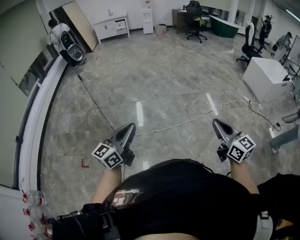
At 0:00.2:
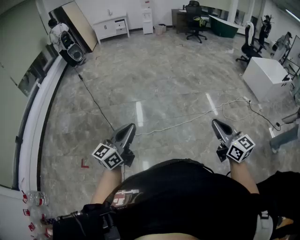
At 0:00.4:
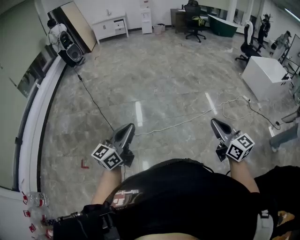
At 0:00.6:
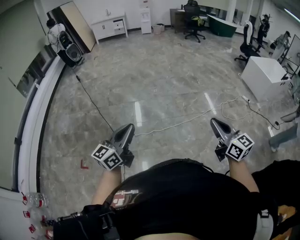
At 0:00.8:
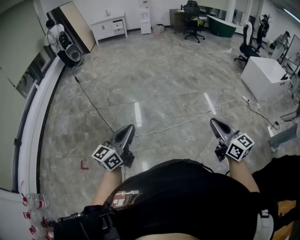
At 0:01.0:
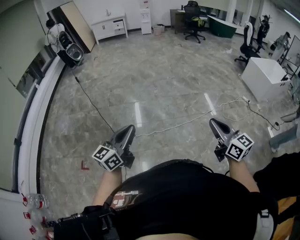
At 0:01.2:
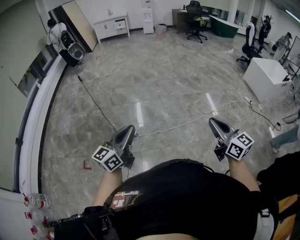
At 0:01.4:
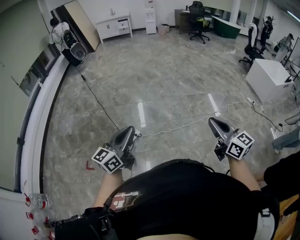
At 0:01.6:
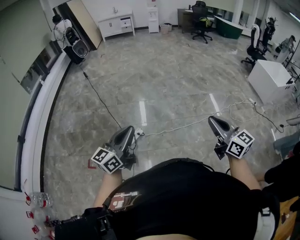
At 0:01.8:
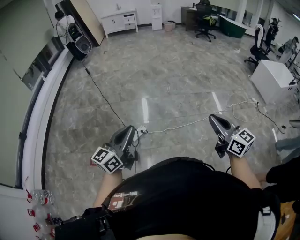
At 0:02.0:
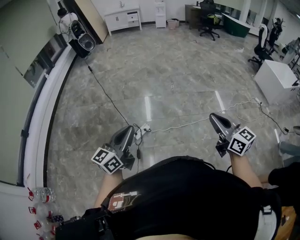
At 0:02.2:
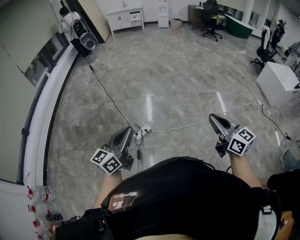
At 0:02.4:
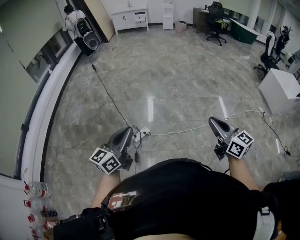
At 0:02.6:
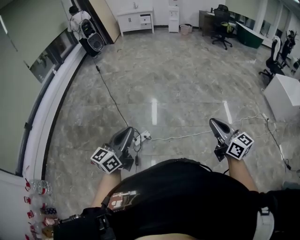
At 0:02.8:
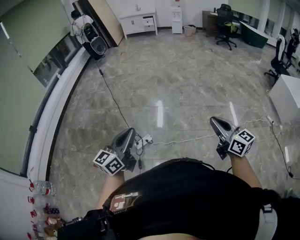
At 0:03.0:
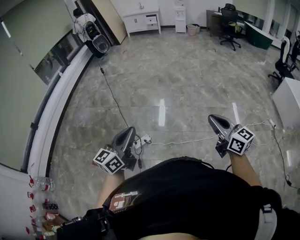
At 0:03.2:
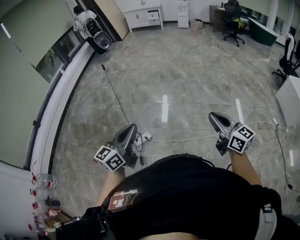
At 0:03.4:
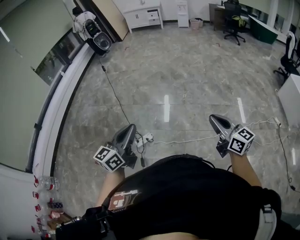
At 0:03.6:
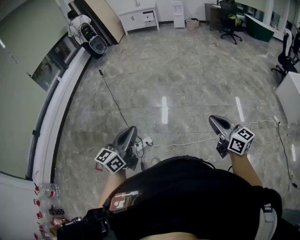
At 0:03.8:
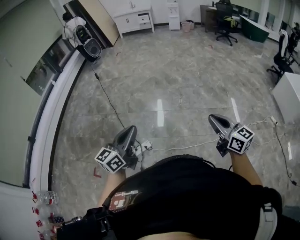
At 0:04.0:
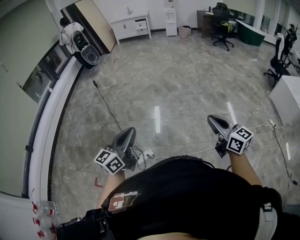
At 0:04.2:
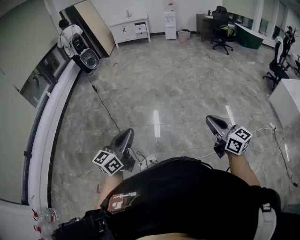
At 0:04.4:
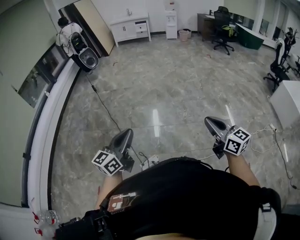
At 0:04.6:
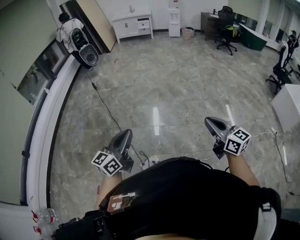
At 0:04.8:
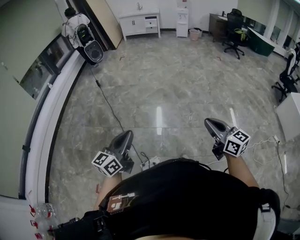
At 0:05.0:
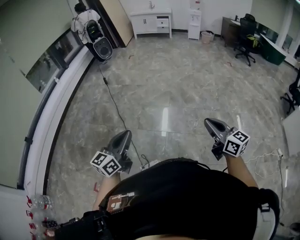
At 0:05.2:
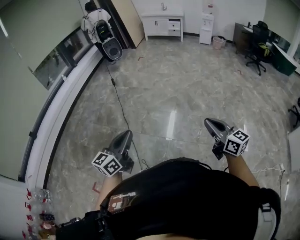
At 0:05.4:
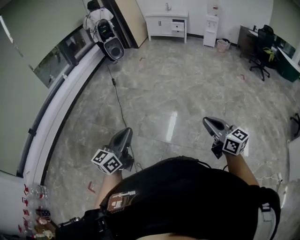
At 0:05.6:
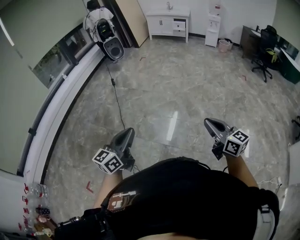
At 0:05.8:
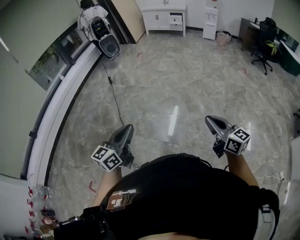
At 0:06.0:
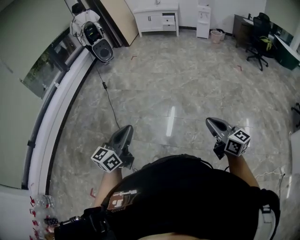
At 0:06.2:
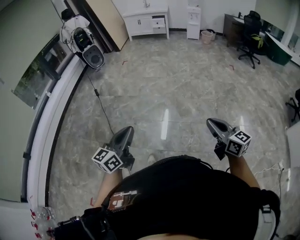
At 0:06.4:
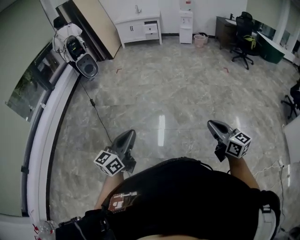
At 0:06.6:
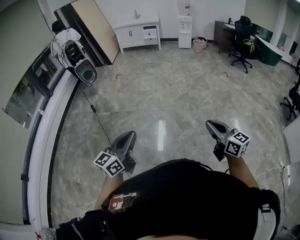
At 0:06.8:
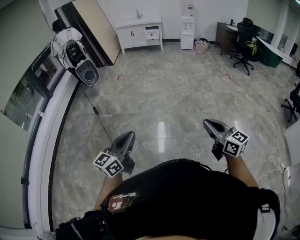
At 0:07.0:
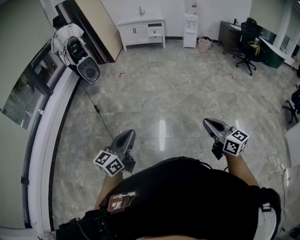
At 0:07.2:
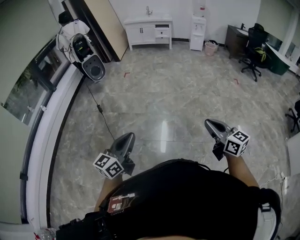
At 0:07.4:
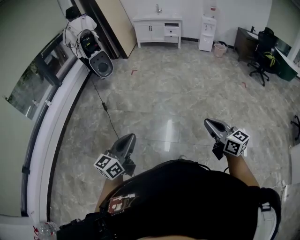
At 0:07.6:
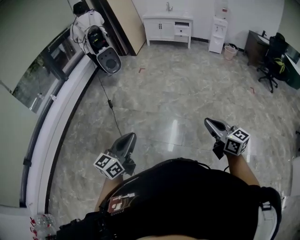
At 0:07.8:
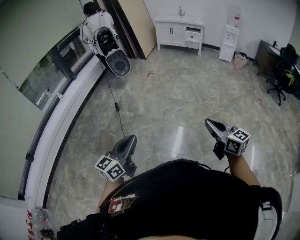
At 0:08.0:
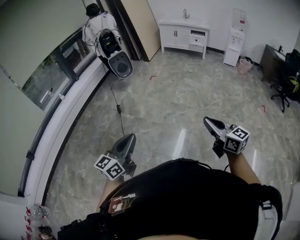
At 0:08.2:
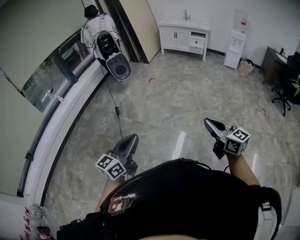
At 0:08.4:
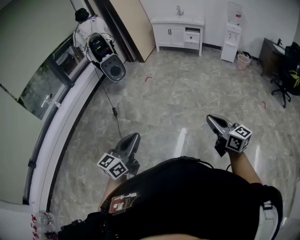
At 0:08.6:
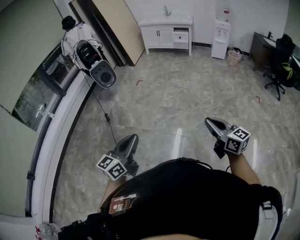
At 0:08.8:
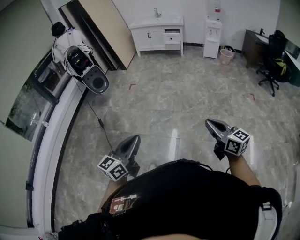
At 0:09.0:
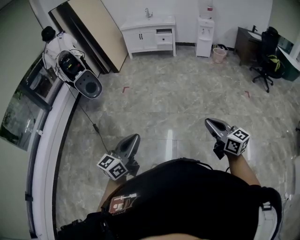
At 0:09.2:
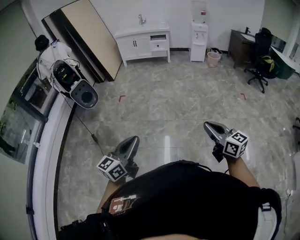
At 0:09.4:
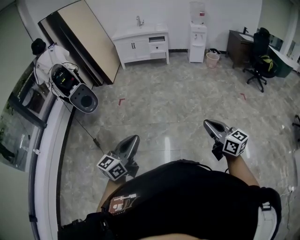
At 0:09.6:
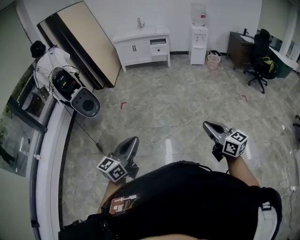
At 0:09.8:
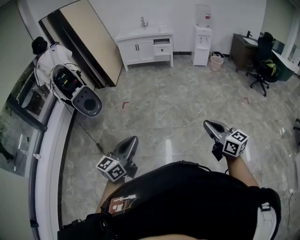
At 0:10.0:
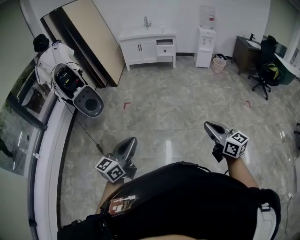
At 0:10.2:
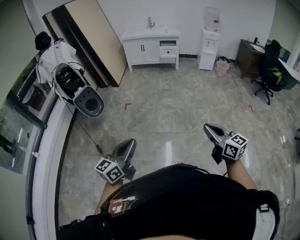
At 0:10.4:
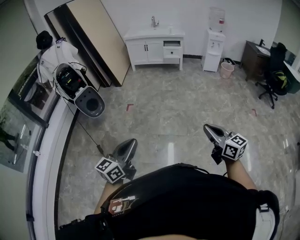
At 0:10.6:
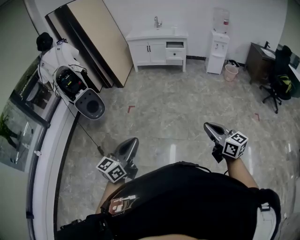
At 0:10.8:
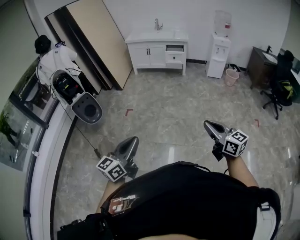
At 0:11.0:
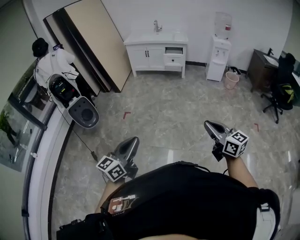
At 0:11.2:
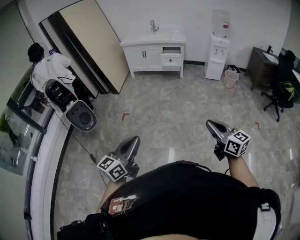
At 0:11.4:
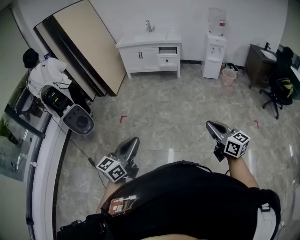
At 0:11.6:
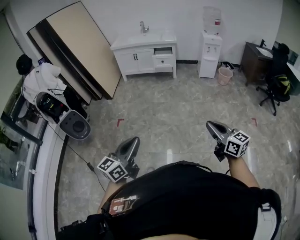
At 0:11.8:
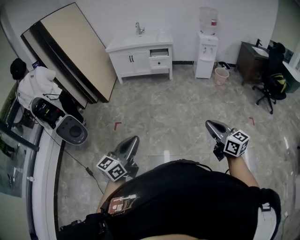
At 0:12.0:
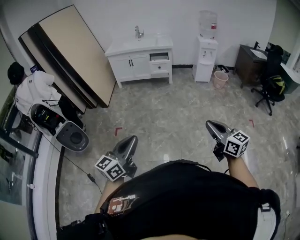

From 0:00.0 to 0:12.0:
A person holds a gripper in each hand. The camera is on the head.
From 0:00.0 to 0:01.6: The two grippers go approximately 15 cm to the left.
From 0:01.6 to 0:03.0: Both grippers travel together forward and to the right, about 20 cm.
From 0:03.0 to 0:04.4: The grippers both shift forward and to the left by approximately 35 cm.
From 0:04.4 to 0:06.0: The two grippers travel together, forward and to the right, approximately 40 cm.
From 0:06.0 to 0:07.6: The pair of grippers is taken forward and to the left, some 40 cm.
From 0:07.6 to 0:09.0: The two grippers go approximately 35 cm forward and to the right.
From 0:09.0 to 0:10.4: Both grippers move forward and to the left, approximately 30 cm.
From 0:10.4 to 0:12.0: The left gripper travels forward by some 35 cm, while the right gripper is displaced forward and to the right by roughly 35 cm.

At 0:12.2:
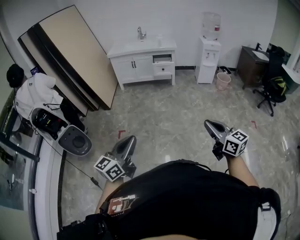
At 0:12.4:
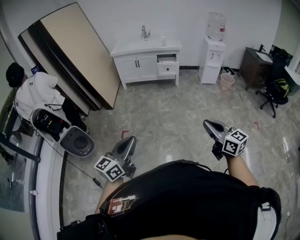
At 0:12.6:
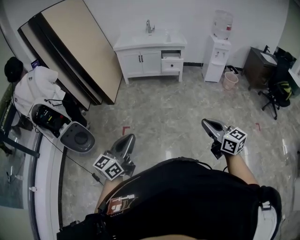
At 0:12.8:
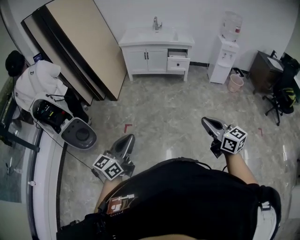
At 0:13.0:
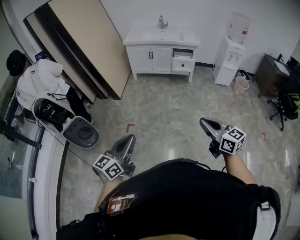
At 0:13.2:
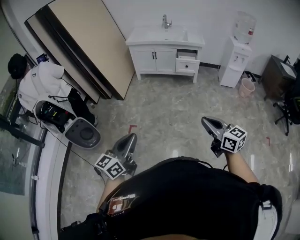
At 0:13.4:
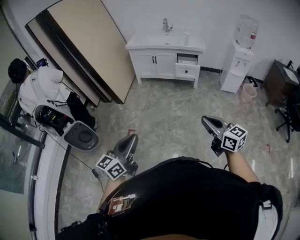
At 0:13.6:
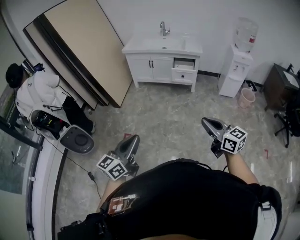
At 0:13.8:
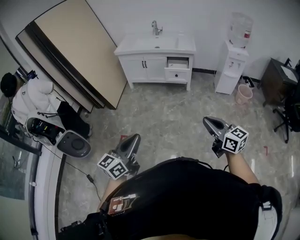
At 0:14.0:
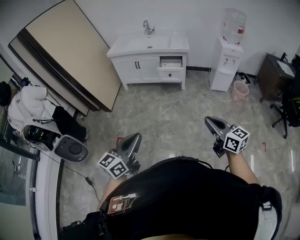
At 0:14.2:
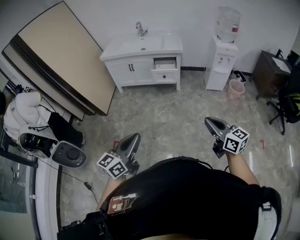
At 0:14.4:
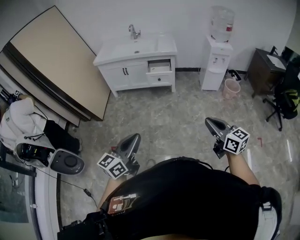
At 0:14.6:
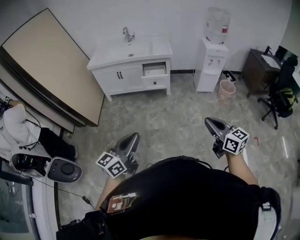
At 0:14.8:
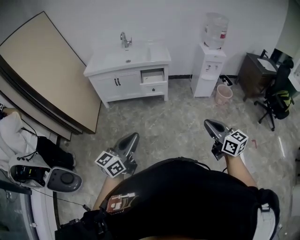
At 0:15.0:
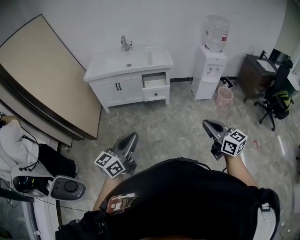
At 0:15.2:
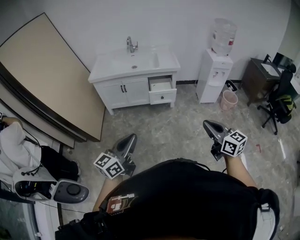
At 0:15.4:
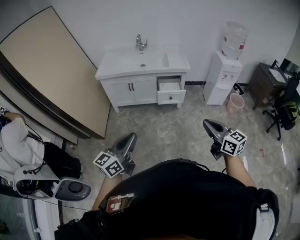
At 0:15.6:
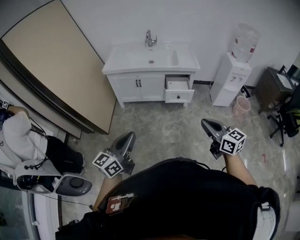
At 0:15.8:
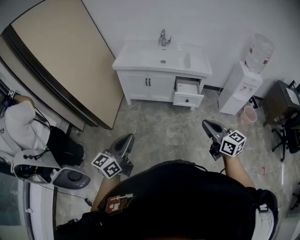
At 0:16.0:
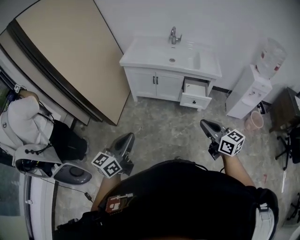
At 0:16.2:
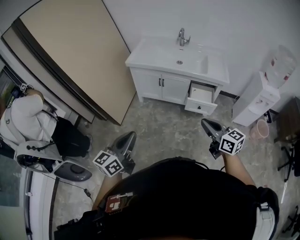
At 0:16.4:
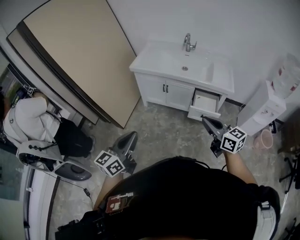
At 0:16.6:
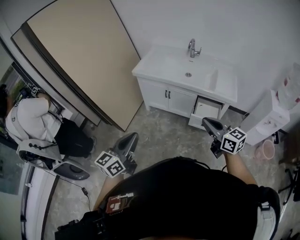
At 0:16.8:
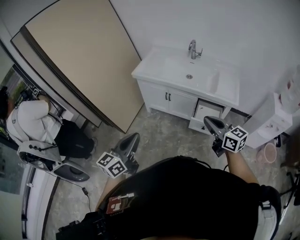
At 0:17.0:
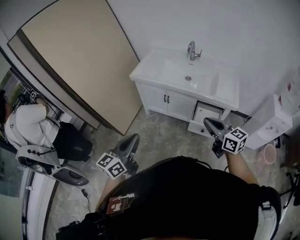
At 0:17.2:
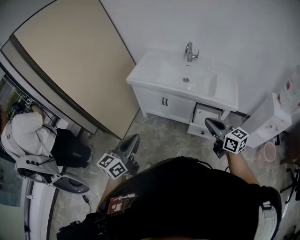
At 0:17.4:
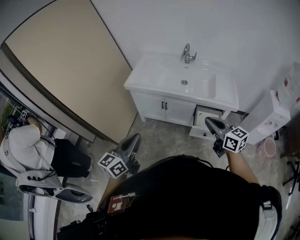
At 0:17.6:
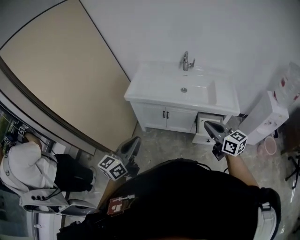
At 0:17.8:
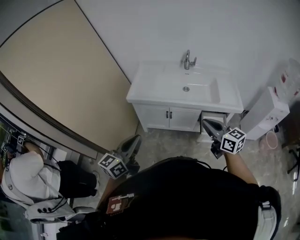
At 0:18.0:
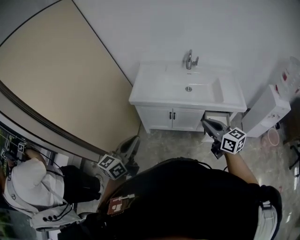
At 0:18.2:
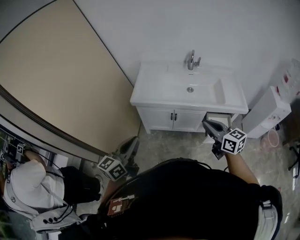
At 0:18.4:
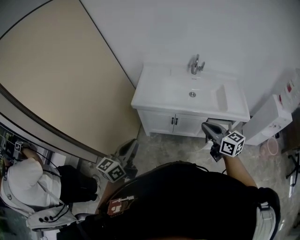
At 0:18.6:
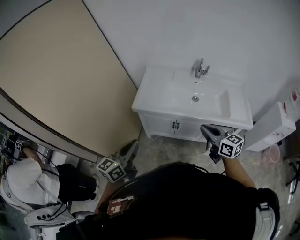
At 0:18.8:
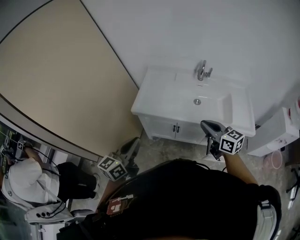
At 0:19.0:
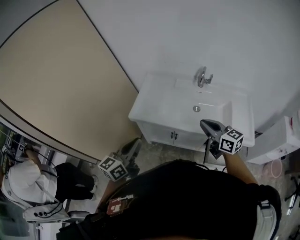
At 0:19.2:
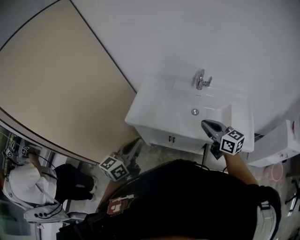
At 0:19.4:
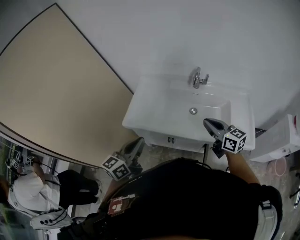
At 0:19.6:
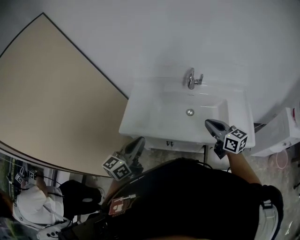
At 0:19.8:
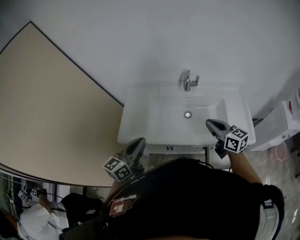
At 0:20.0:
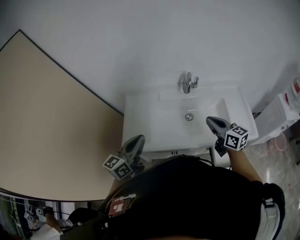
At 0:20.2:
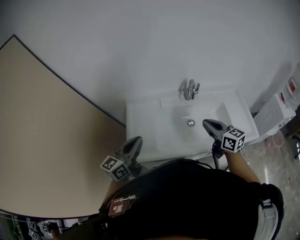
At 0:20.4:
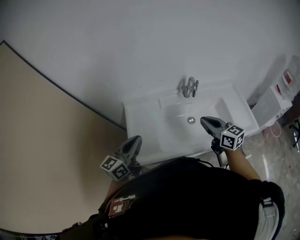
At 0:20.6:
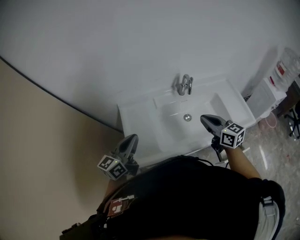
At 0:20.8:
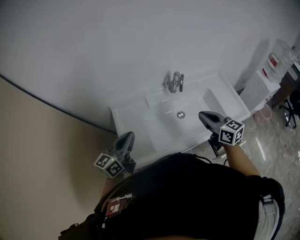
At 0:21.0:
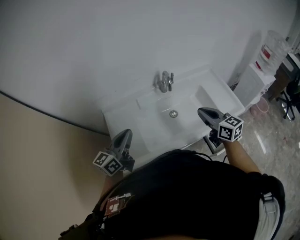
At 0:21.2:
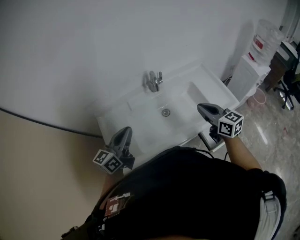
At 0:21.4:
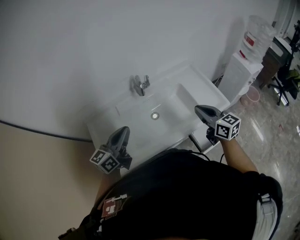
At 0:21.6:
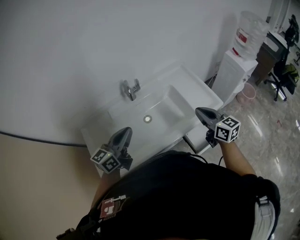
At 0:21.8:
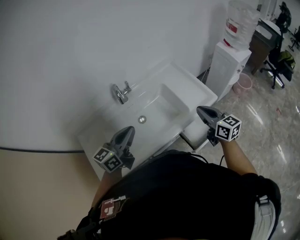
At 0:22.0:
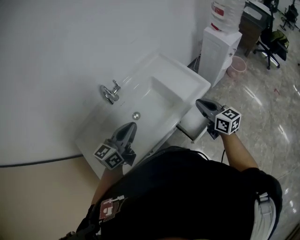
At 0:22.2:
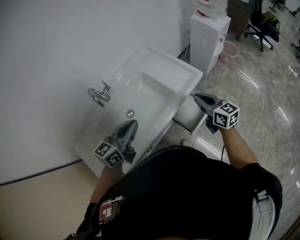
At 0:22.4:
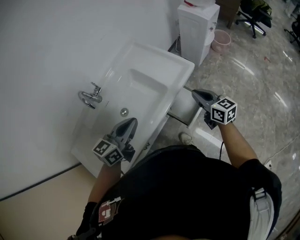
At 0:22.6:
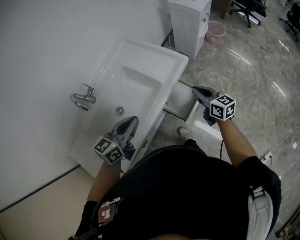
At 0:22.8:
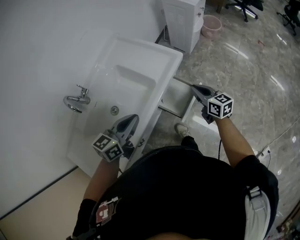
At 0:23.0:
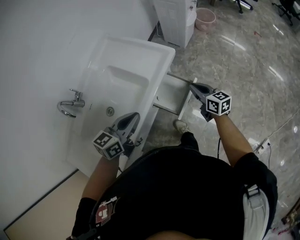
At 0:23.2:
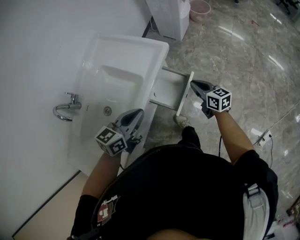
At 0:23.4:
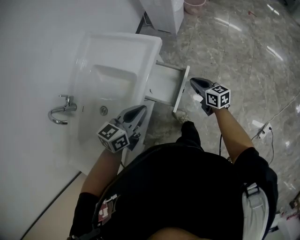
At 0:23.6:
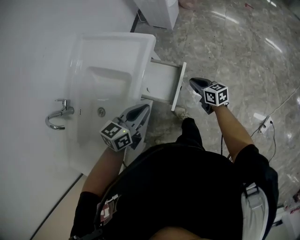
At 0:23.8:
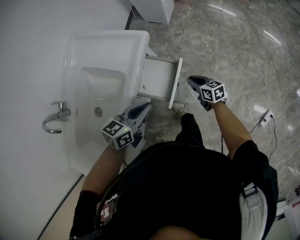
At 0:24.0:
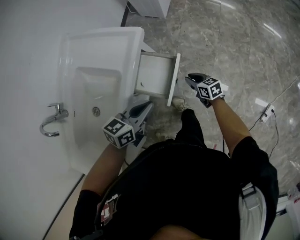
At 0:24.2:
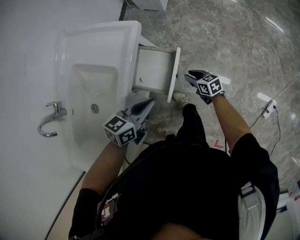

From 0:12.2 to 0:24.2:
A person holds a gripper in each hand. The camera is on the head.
From 0:12.2 to 0:13.8: The left gripper shifts about 30 cm forward and to the right. The right gripper is displaced forward by some 35 cm.
From 0:13.8 to 0:15.2: The grippers both shift forward by some 25 cm.
From 0:15.2 to 0:16.6: The left gripper changes place by some 25 cm, and swivels approximately 30 degrees, while the right gripper moves some 40 cm, and changes its angle by roughly 30 degrees.
From 0:16.6 to 0:18.2: Both grippers travel together forward and to the left, about 30 cm.
From 0:18.2 to 0:19.8: Both grippers travel together forward and to the right, roughly 35 cm.
From 0:19.8 to 0:21.2: The right gripper changes its angle by approximately 30 degrees; the left gripper changes place by approximately 15 cm, and turns by approximately 20 degrees.
From 0:21.2 to 0:22.6: The right gripper changes place by approximately 35 cm, and rotates roughly 30 degrees; the left gripper moves approximately 35 cm, and changes its angle by about 40 degrees.
From 0:22.6 to 0:24.2: The right gripper shifts some 35 cm downward, swivels some 20 degrees, and opens. The left gripper travels to the right and downward by some 30 cm, and turns by about 30 degrees.
